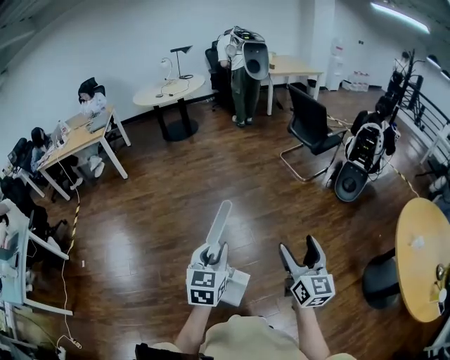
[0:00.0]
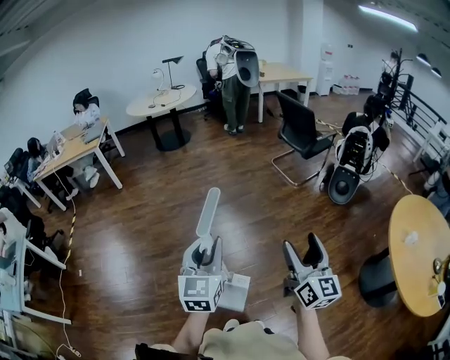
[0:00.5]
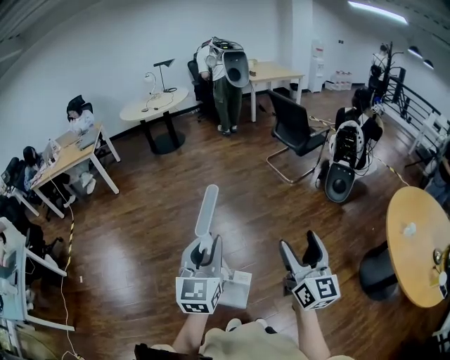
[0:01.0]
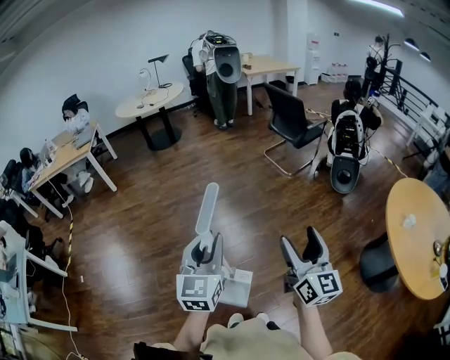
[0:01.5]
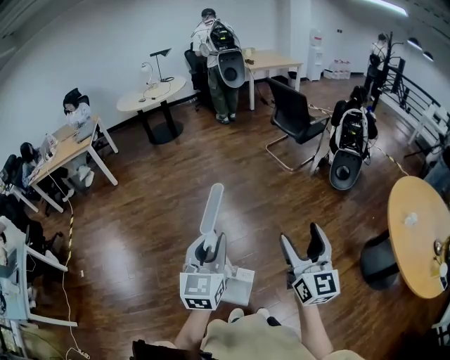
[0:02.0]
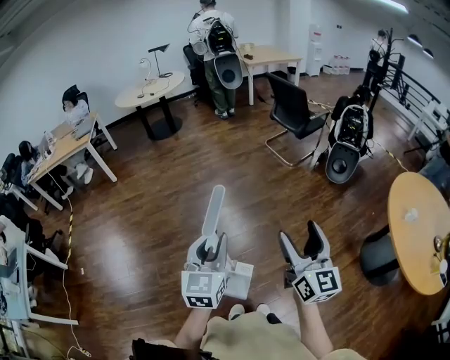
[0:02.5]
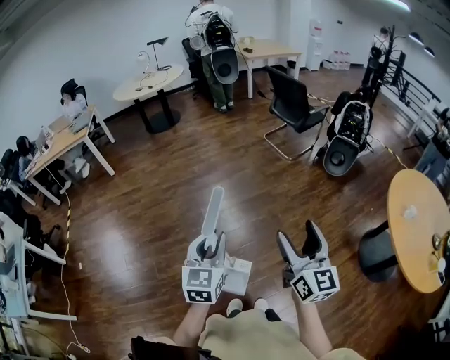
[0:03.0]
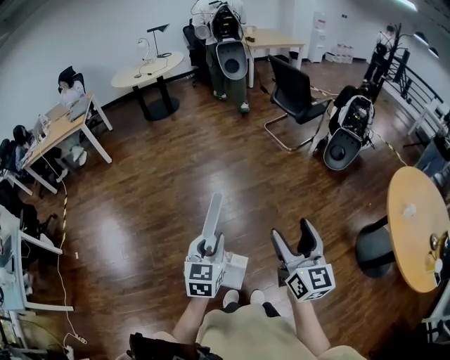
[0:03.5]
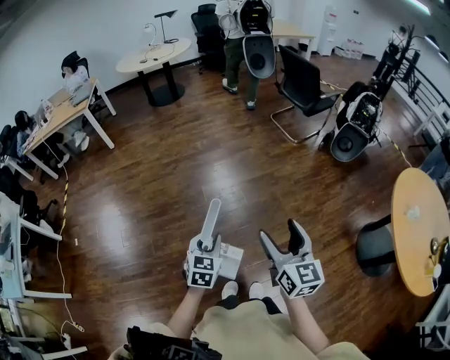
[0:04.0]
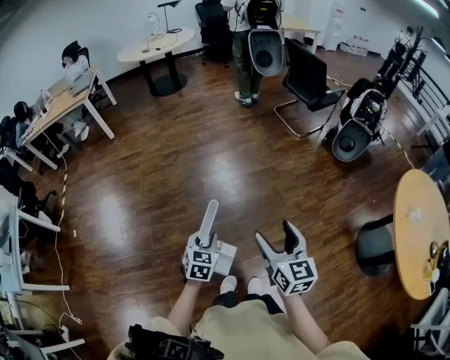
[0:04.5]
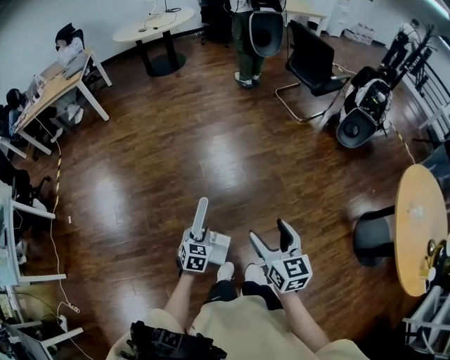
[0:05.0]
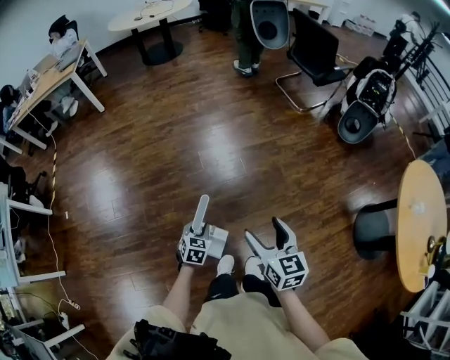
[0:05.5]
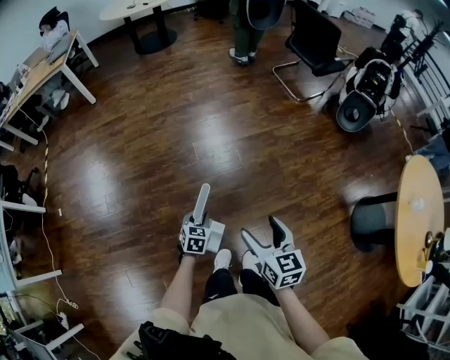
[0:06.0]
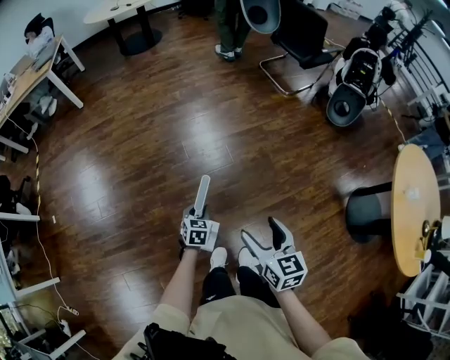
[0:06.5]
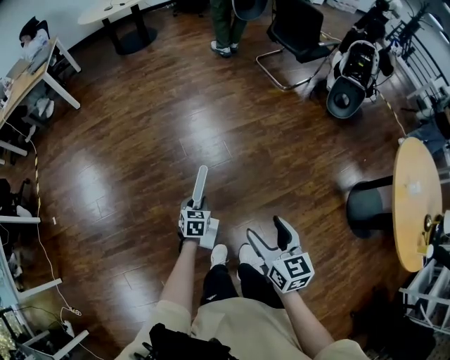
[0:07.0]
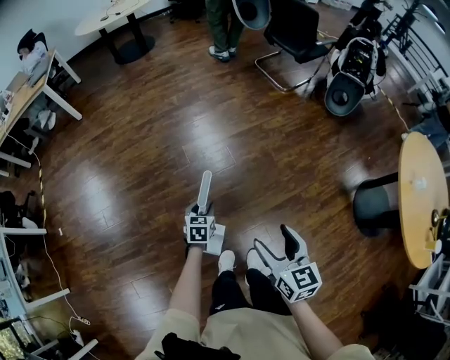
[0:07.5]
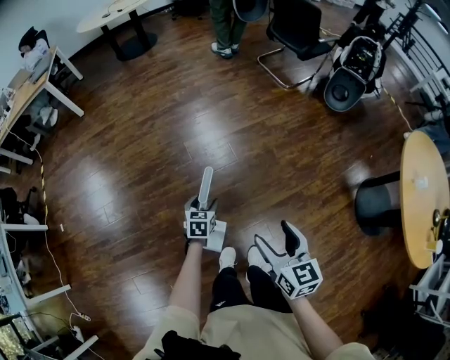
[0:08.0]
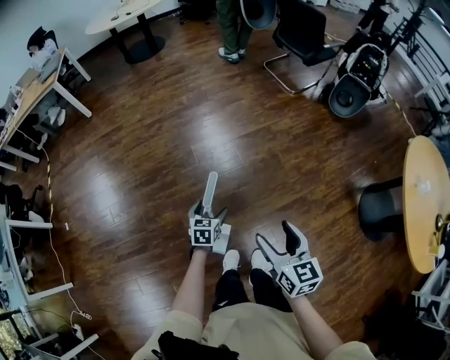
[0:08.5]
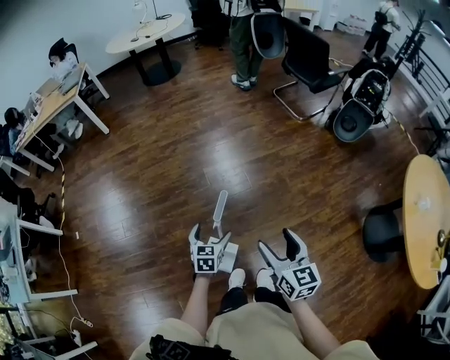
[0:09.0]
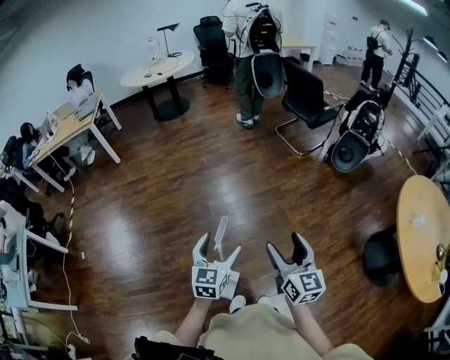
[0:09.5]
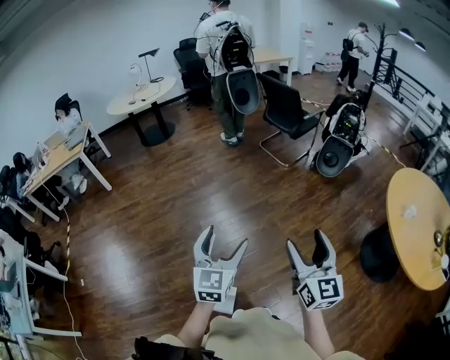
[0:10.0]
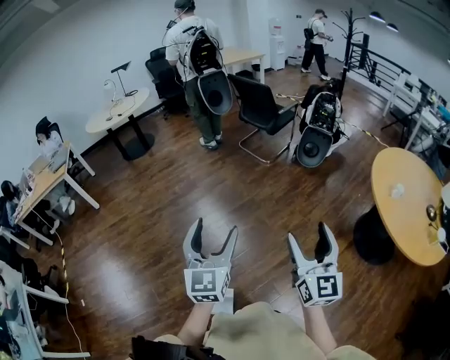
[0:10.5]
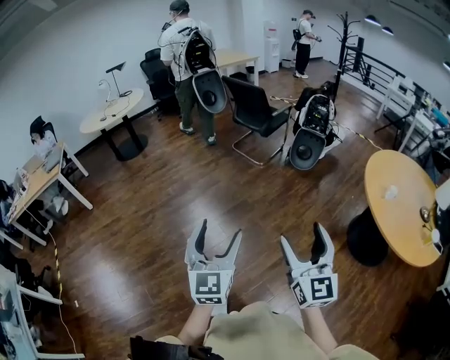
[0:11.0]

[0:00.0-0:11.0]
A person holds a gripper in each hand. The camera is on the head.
0:00.0 to 0:02.0: Both grippers travel together upward, about 5 cm.
0:02.0 to 0:03.5: The left gripper goes some 10 cm downward.
0:03.5 to 0:05.5: The right gripper shifts some 20 cm downward and to the left, and turns by roughly 30 degrees, while the left gripper shifts approximately 30 cm downward, and changes its angle by approximately 30 degrees.
0:05.5 to 0:07.5: The right gripper changes place by roughly 5 cm, while the left gripper is displaced forward and to the right by approximately 10 cm.
0:07.5 to 0:09.0: The left gripper shifts about 10 cm upward and backward, and opens.
0:09.0 to 0:11.0: Both grippers move upward and to the right, some 35 cm. The right gripper swivels approximately 40 degrees. The left gripper tilts its fingers about 40 degrees upward.

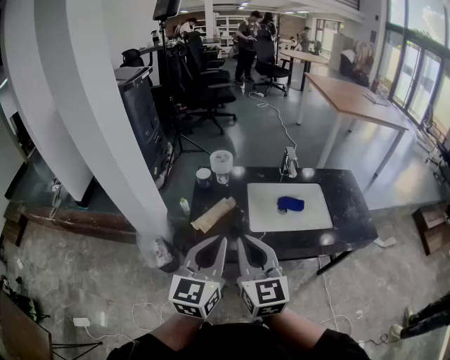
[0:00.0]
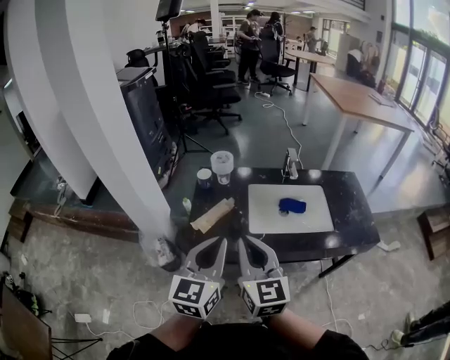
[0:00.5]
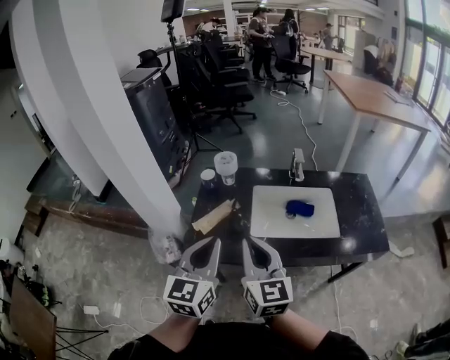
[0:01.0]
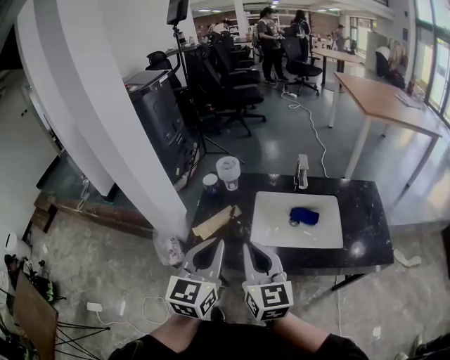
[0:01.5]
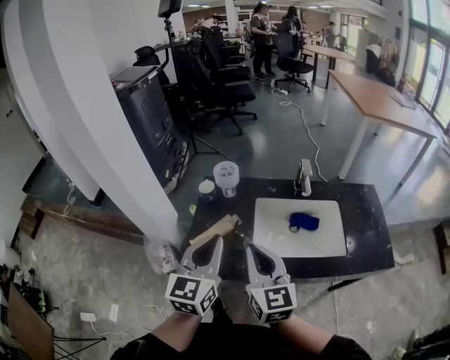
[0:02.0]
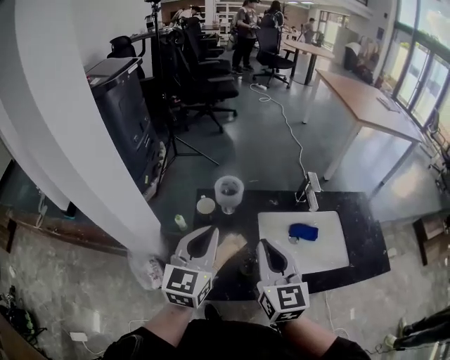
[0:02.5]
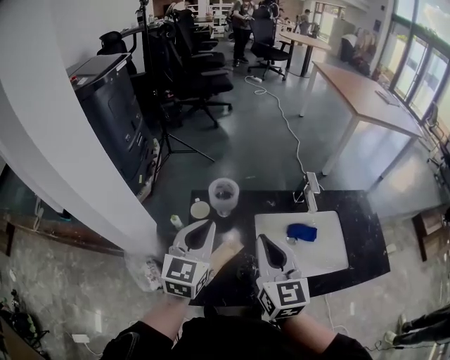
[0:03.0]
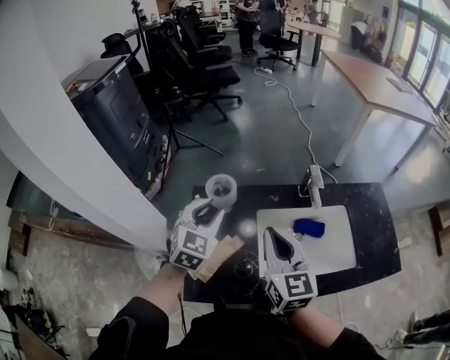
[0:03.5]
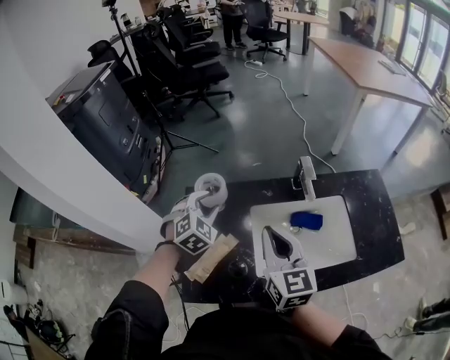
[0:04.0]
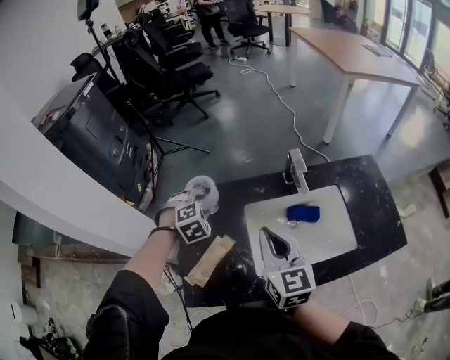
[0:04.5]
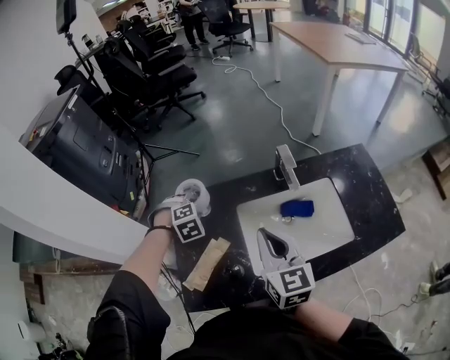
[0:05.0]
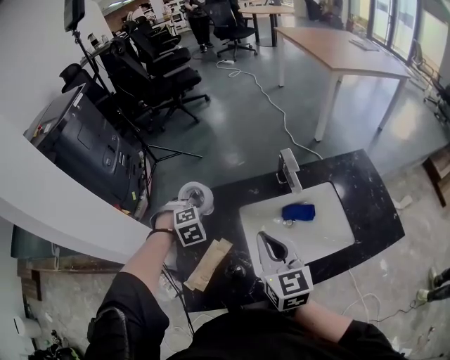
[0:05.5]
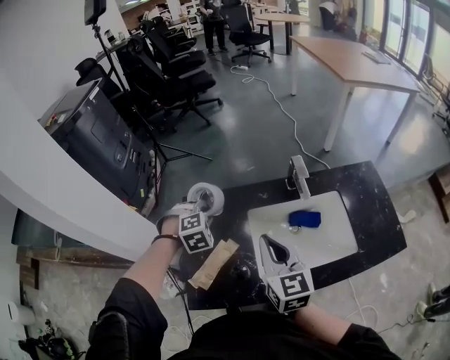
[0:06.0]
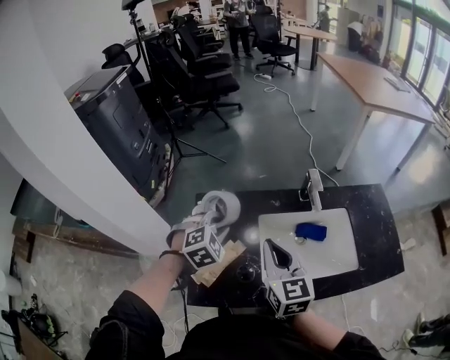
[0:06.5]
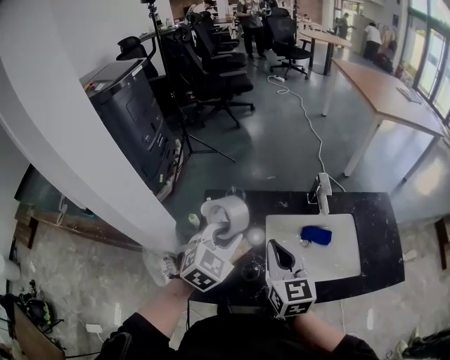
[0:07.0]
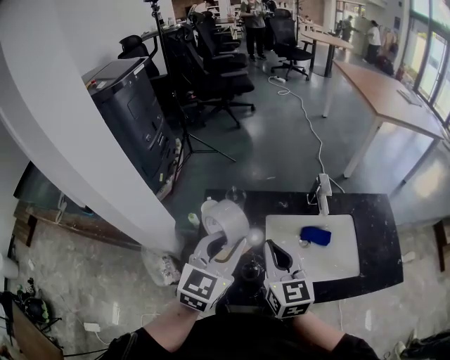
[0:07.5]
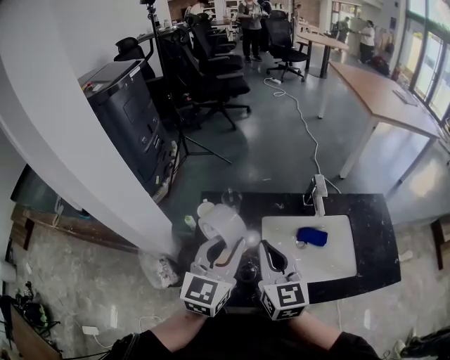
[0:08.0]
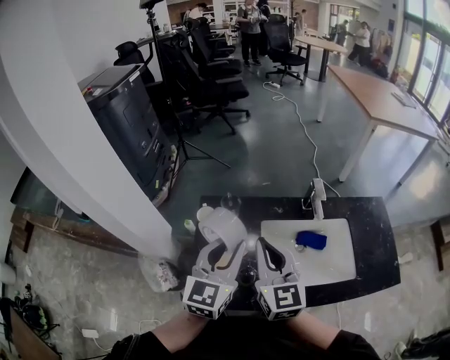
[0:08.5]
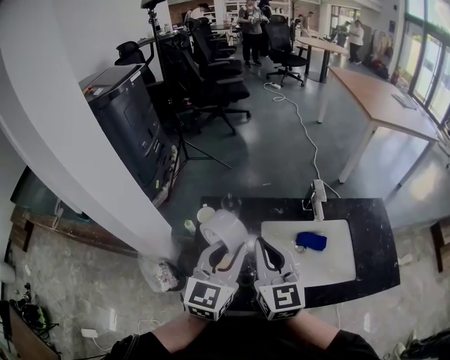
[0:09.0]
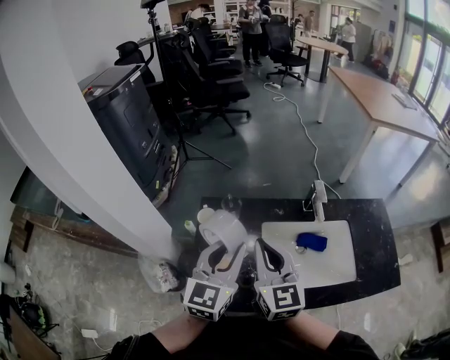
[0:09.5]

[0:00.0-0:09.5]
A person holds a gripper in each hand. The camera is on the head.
0:00.0 to 0:02.0: The right gripper shifts roughly 10 cm forward and to the right; the left gripper is displaced forward by about 10 cm.
0:02.0 to 0:04.0: The left gripper moves forward and downward, some 30 cm, rotates around the line of its fingers by roughly 50 degrees, clockwise from behind, and opens its fingers; the right gripper heads forward, covering roughly 15 cm.
0:04.0 to 0:05.5: The left gripper goes roughly 10 cm downward, and turns by approximately 40 degrees.
0:05.5 to 0:07.5: The left gripper travels upward and backward by about 25 cm, and angles its fingers upward, by about 50 degrees. The right gripper is displaced to the left by approximately 5 cm.
0:07.5 to 0:09.5: The grippers stay close to where they were, moving slightly.

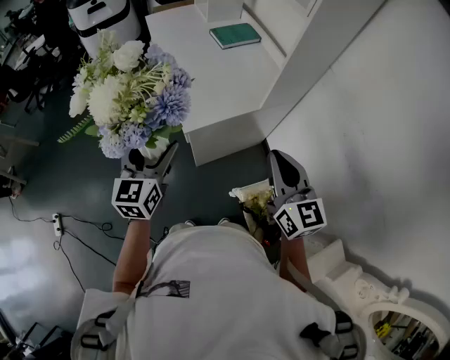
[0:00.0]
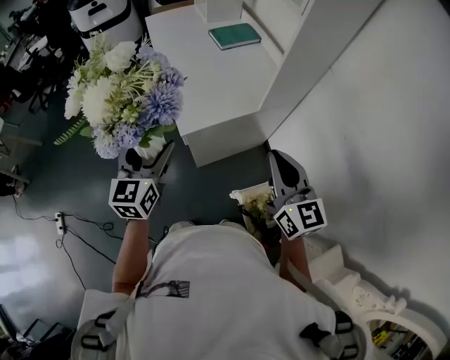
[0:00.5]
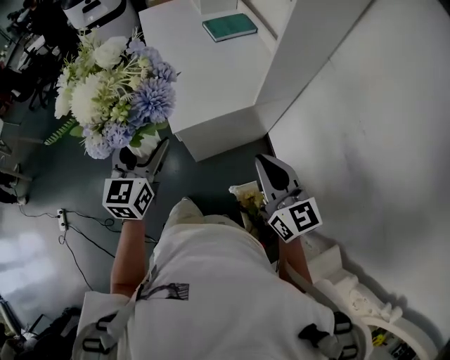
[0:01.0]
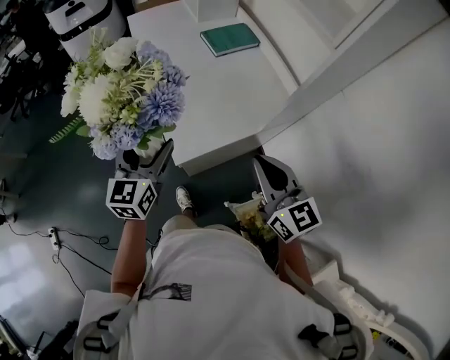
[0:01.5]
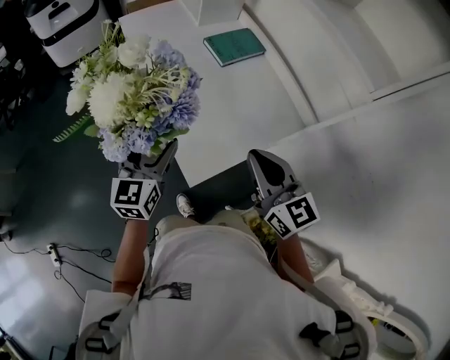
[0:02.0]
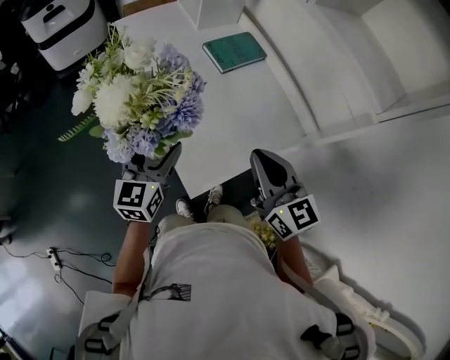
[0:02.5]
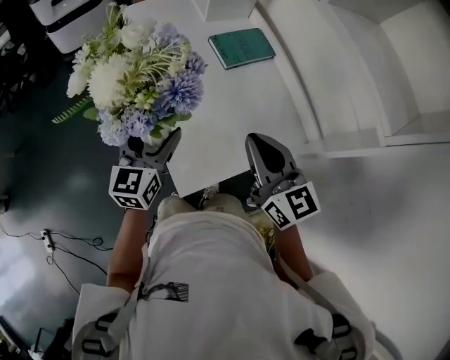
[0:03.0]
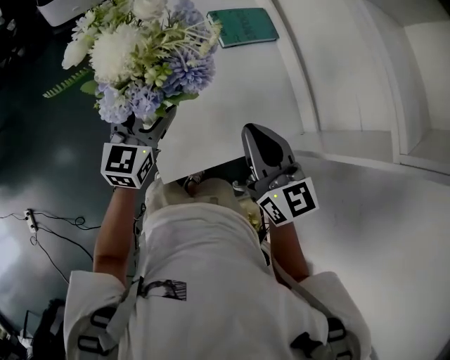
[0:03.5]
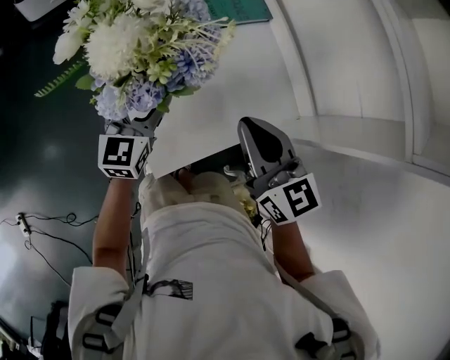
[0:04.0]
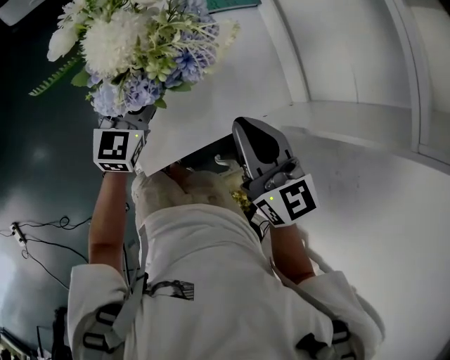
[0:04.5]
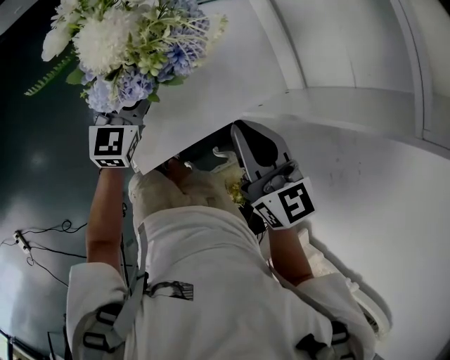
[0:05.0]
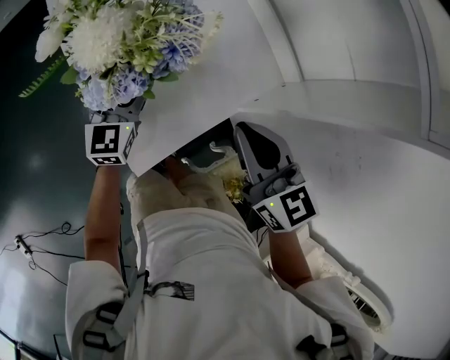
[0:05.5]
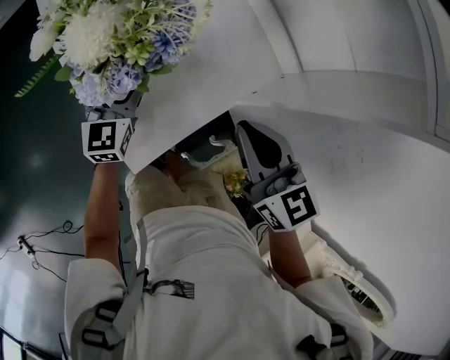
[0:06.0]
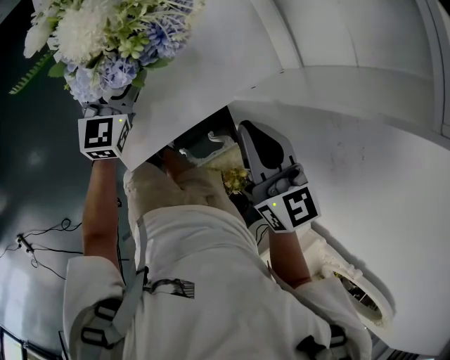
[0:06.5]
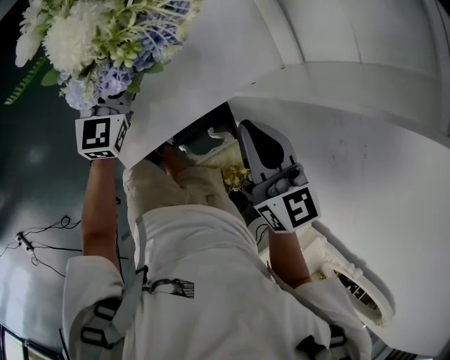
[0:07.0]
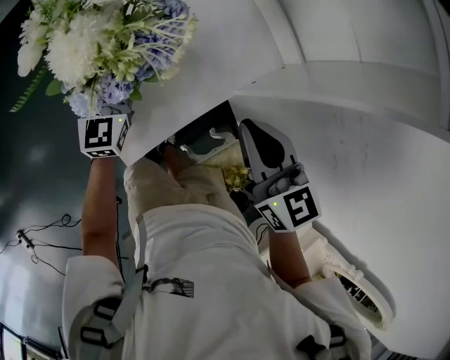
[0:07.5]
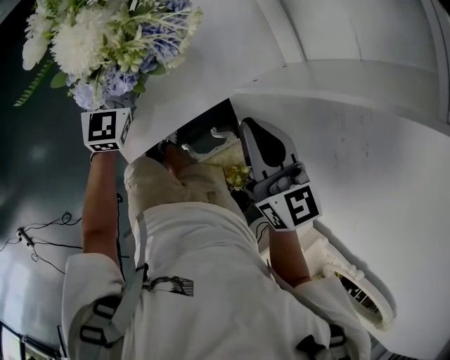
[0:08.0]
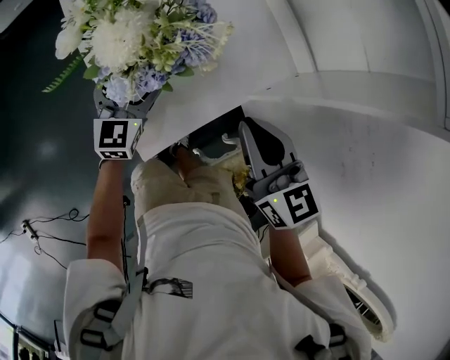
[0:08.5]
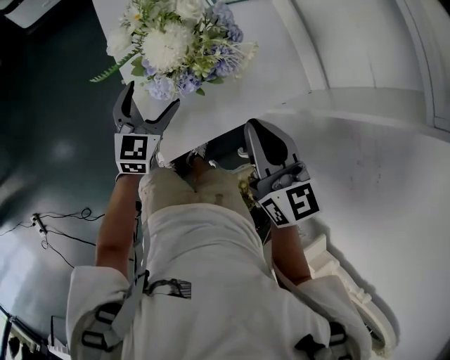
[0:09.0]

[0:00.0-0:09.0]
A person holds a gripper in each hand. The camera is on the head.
0:00.0 to 0:02.0: The right gripper goes approximately 5 cm to the left.
0:02.0 to 0:04.5: The right gripper travels upward by about 10 cm.
0:04.5 to 0:07.0: The right gripper is displaced backward by some 5 cm.
0:07.0 to 0:09.0: The right gripper heads to the left, covering roughly 5 cm. The left gripper travels backward by roughly 5 cm.
